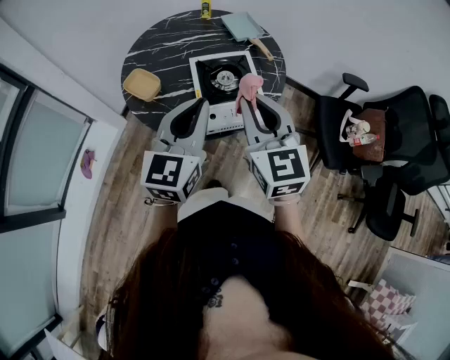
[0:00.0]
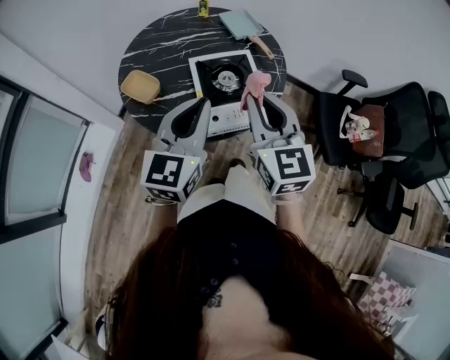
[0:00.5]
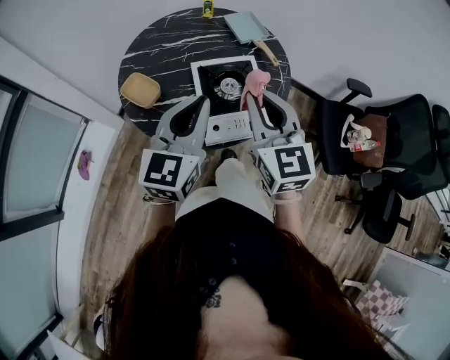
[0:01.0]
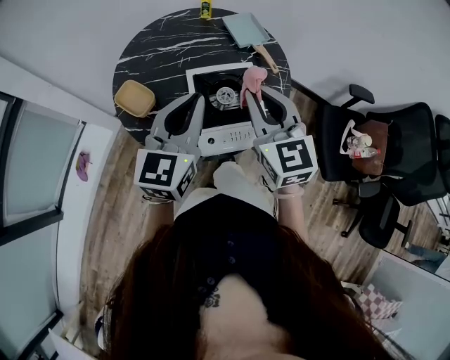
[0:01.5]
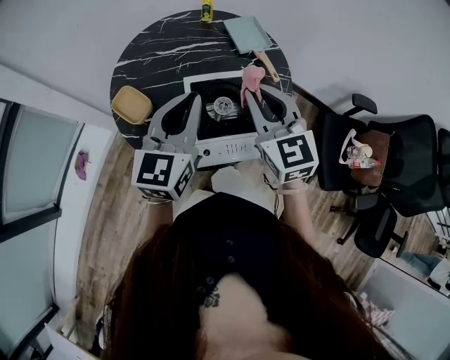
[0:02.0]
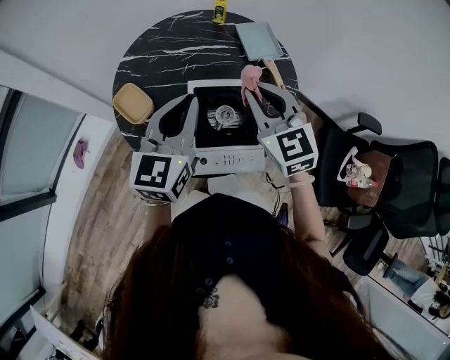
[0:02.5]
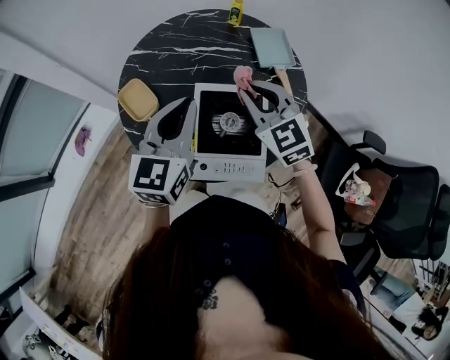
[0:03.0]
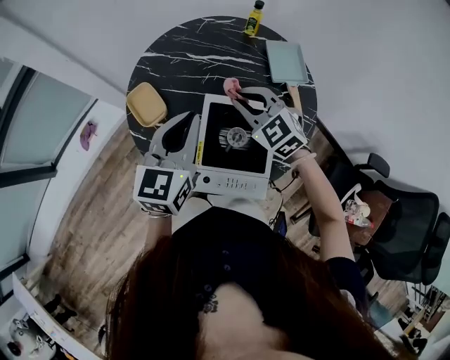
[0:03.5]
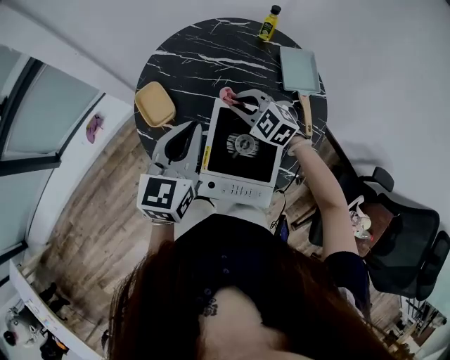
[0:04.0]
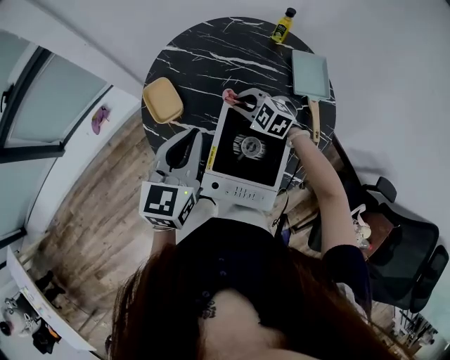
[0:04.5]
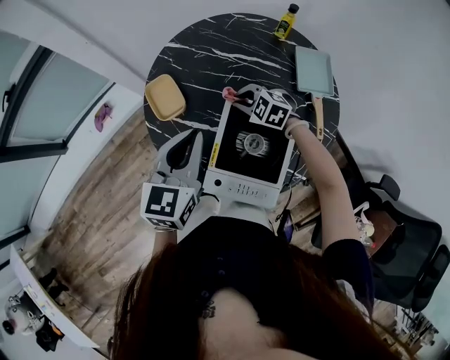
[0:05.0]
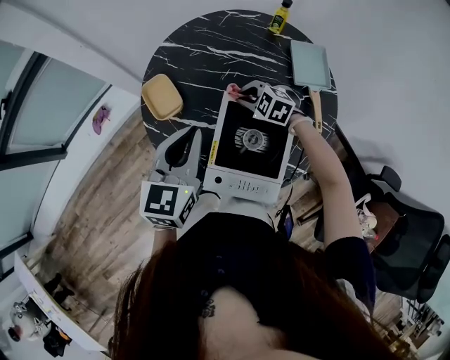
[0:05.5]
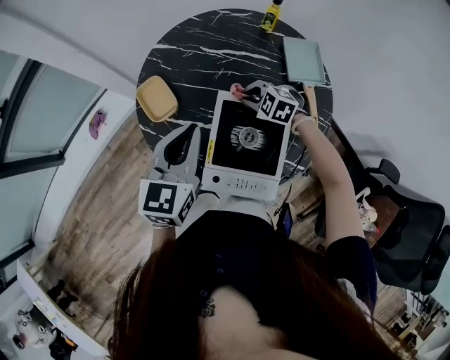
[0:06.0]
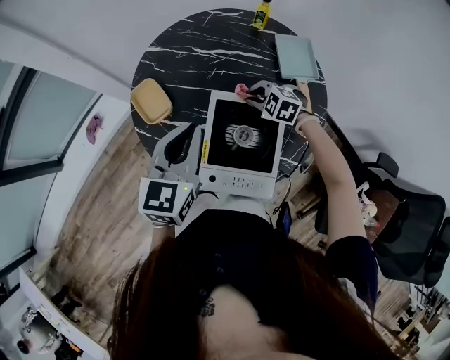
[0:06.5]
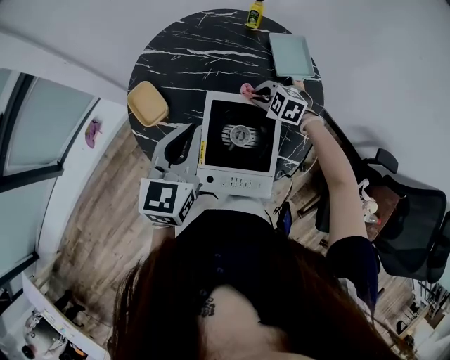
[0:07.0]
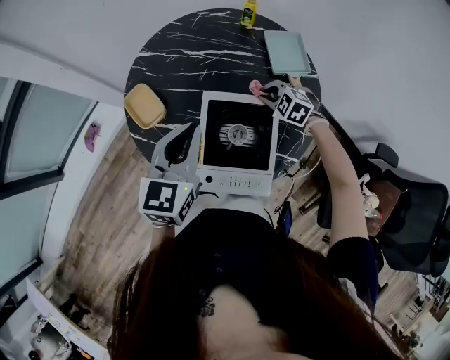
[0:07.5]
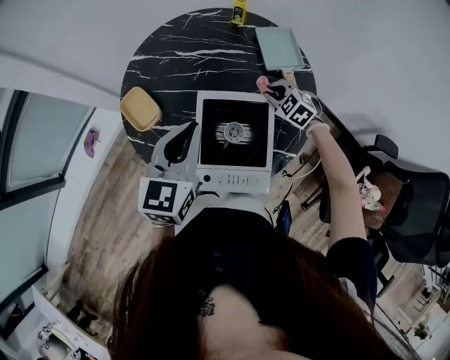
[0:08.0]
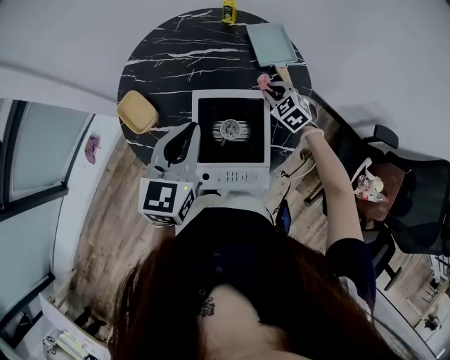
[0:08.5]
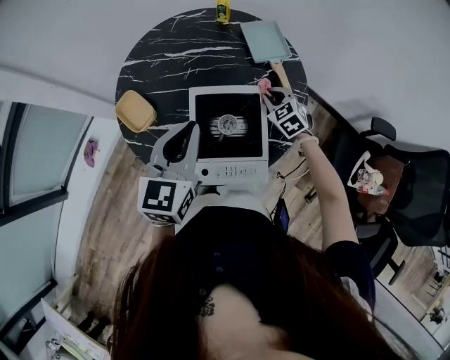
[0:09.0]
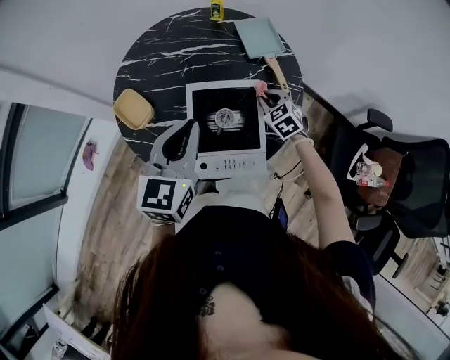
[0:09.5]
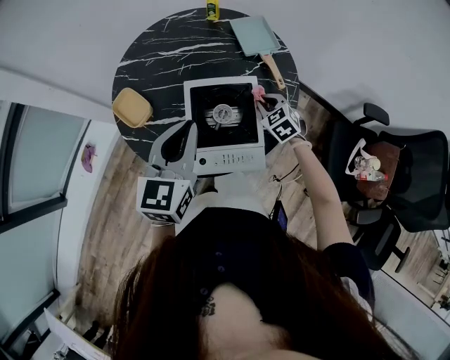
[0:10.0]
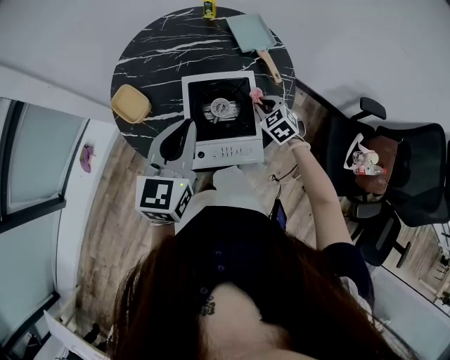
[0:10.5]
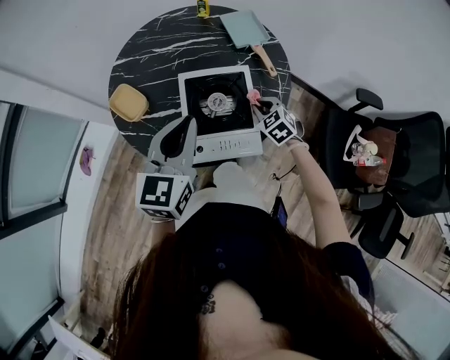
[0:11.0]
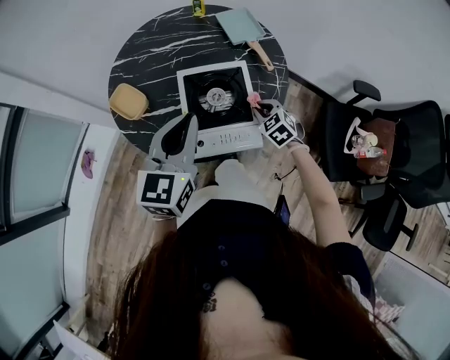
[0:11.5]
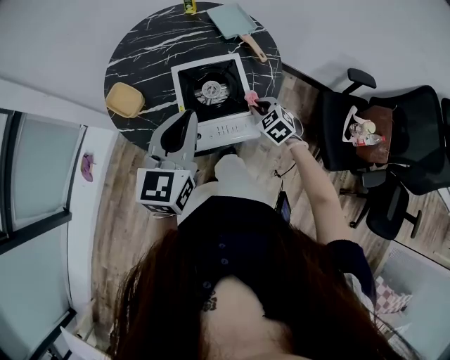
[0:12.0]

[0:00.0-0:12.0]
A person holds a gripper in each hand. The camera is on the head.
0:00.0 to 0:02.0: Both grippers travel together forward, approximately 20 cm.
0:02.0 to 0:04.0: The left gripper shifts by approximately 10 cm, and changes its angle by approximately 20 degrees; the right gripper moves downward, some 20 cm, and changes its angle by some 60 degrees.
0:04.0 to 0:06.0: The right gripper shifts roughly 10 cm downward.
0:06.0 to 0:08.0: The left gripper moves to the right, roughly 5 cm, while the right gripper is displaced to the right by roughly 15 cm, and rotates about 20 degrees.
0:08.0 to 0:10.0: The left gripper heads backward, covering roughly 5 cm; the right gripper travels backward by some 10 cm, and turns by about 30 degrees.
0:10.0 to 0:12.0: The right gripper is displaced backward by approximately 15 cm; the left gripper shifts about 5 cm backward.

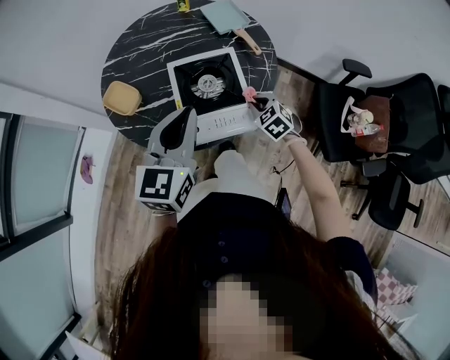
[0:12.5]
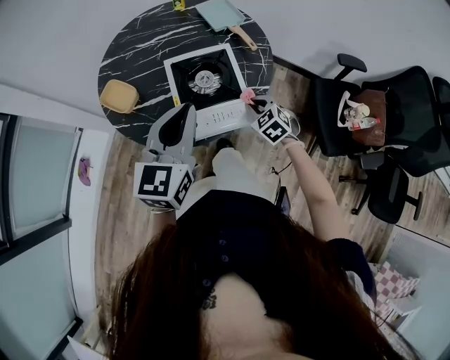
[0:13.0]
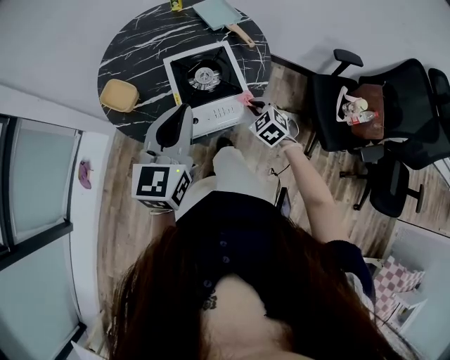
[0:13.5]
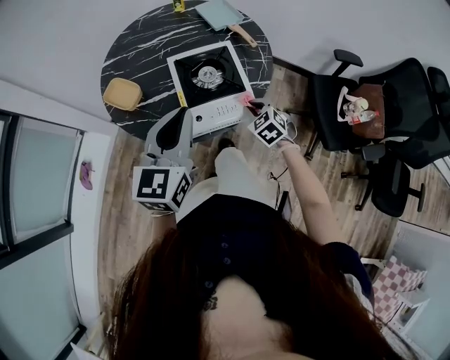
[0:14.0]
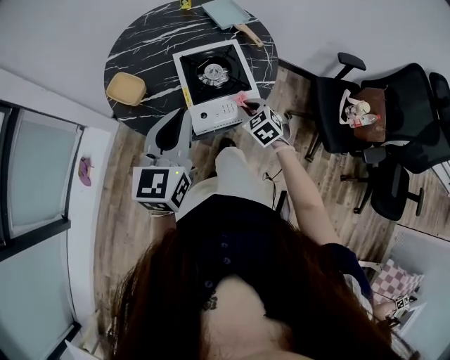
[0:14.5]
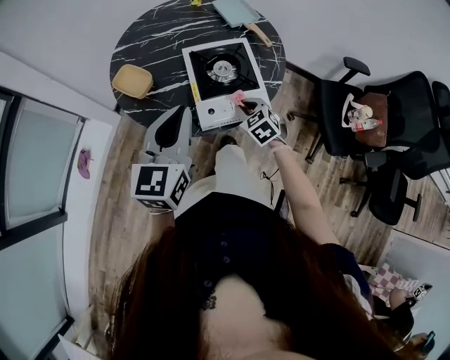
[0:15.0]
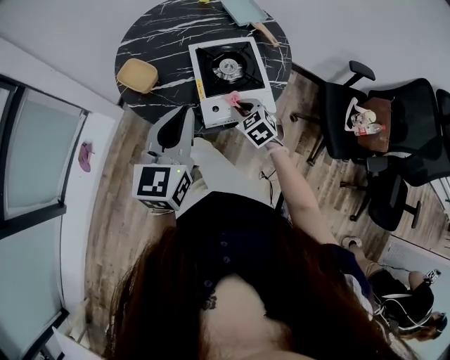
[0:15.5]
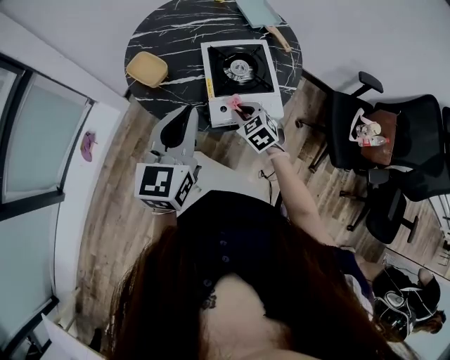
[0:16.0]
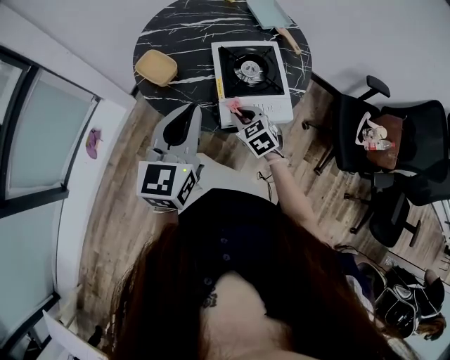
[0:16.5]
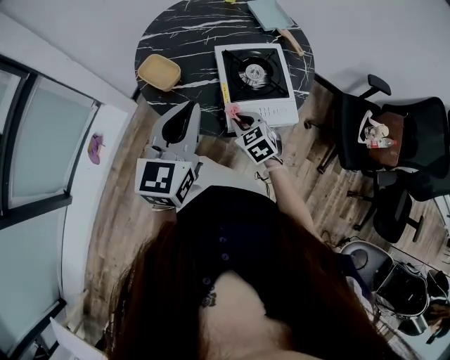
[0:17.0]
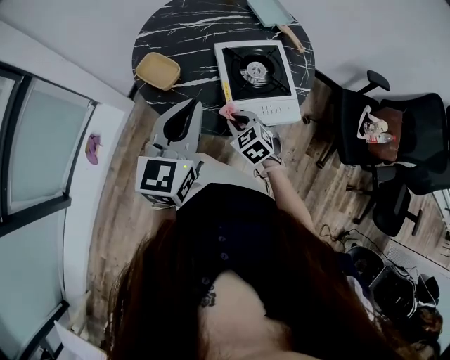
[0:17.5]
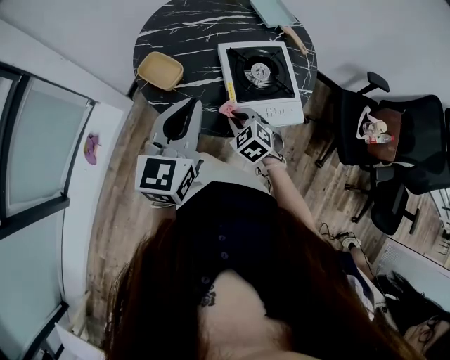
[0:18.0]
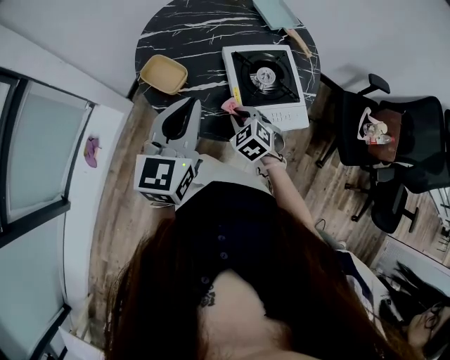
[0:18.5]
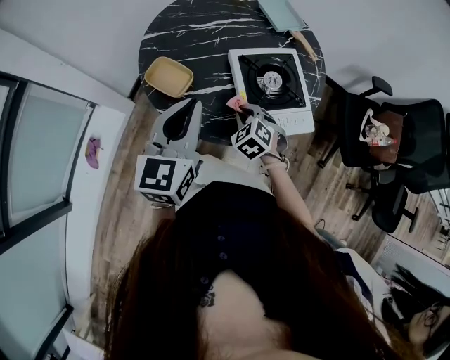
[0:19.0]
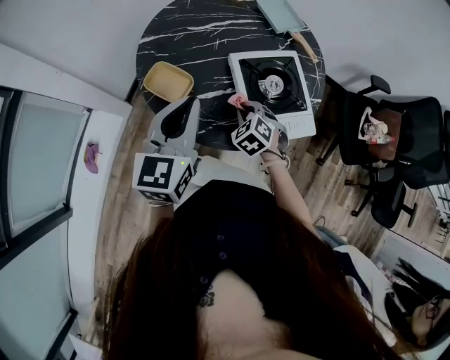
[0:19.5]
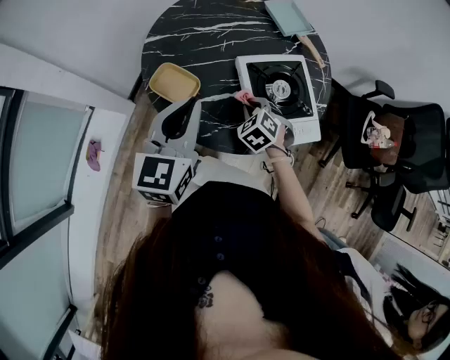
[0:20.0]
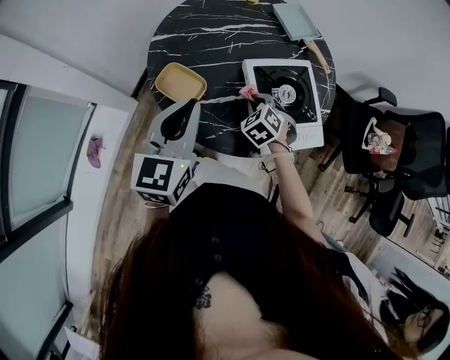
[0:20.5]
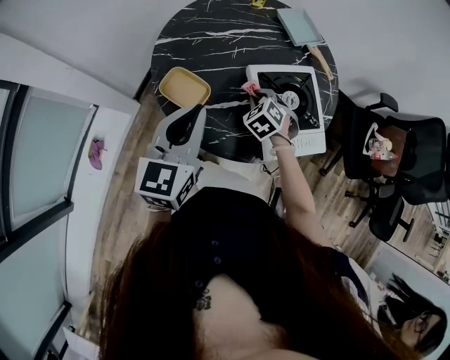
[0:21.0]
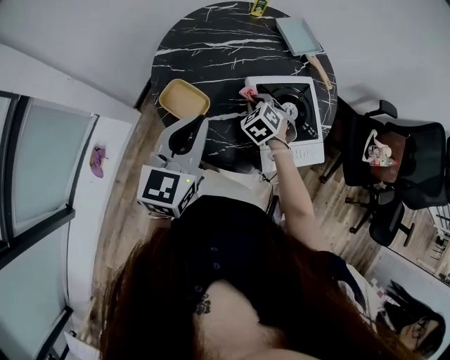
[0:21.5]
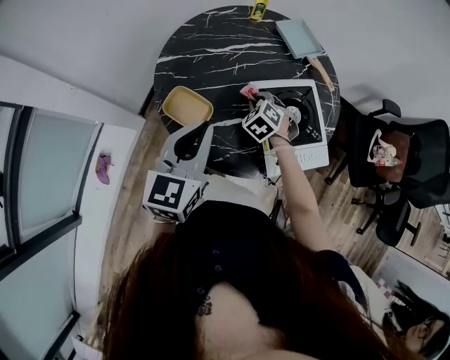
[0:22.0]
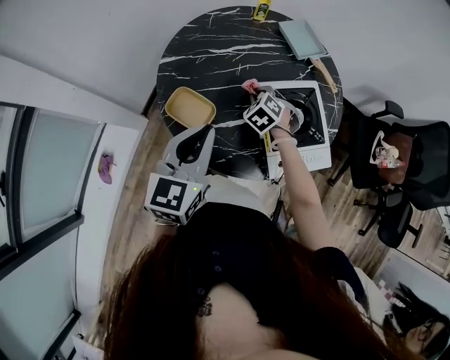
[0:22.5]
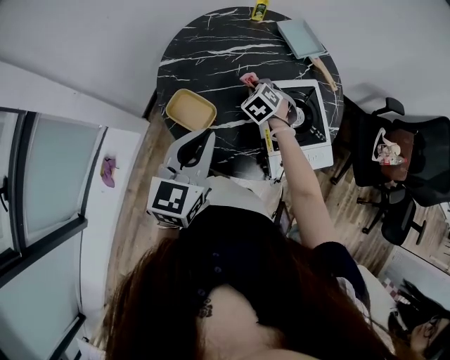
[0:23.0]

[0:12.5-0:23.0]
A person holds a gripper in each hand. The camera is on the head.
0:12.5 to 0:14.5: The two grippers go roughly 10 cm backward and to the left.
0:14.5 to 0:16.5: The right gripper goes approximately 15 cm to the left. The left gripper heads to the left, covering about 5 cm.
0:16.5 to 0:19.0: The right gripper goes roughly 10 cm to the left and forward, and rotates about 20 degrees; the left gripper travels forward and to the left by some 15 cm.
0:19.0 to 0:21.0: The left gripper is displaced to the left by approximately 5 cm. The right gripper goes approximately 10 cm forward.
0:21.0 to 0:23.0: The right gripper shifts some 10 cm forward.

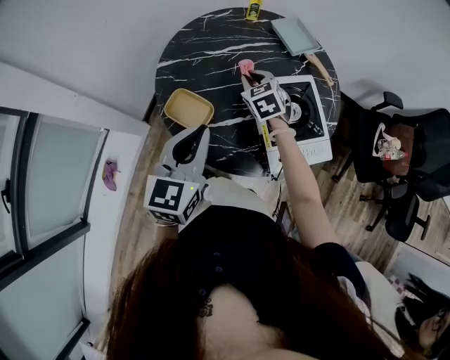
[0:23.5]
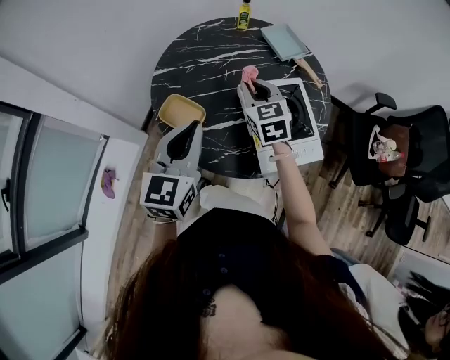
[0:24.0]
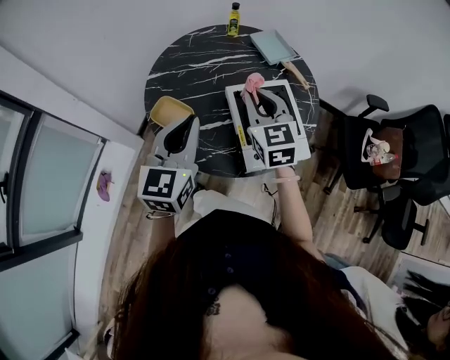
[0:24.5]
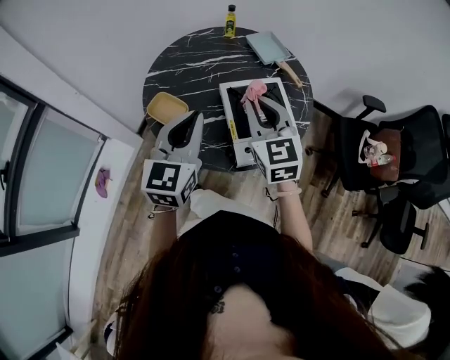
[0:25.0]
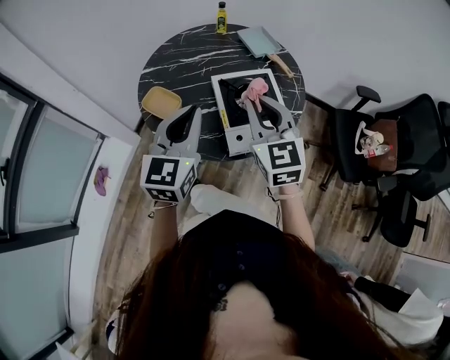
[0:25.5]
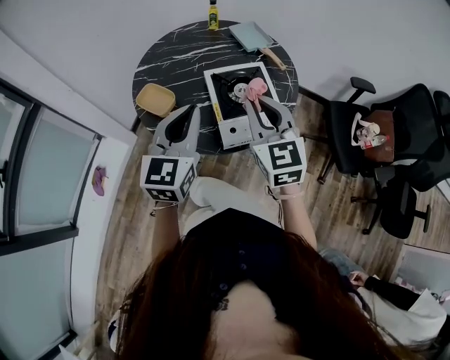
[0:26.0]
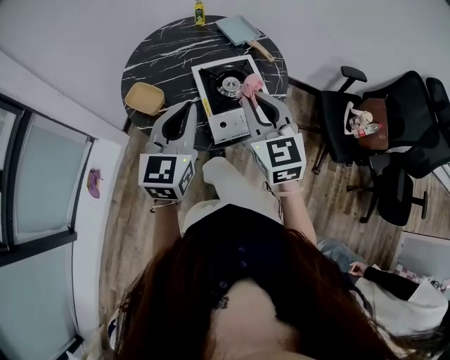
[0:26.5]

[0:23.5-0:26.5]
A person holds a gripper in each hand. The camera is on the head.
0:23.5 to 0:25.0: The left gripper goes approximately 10 cm to the right, backward and upward; the right gripper moves backward, upward and to the right, some 30 cm, and turns by roughly 30 degrees.
0:25.0 to 0:26.5: The left gripper heads to the right and backward, covering roughly 10 cm. Meanwhile the right gripper heads backward and to the right, covering approximately 10 cm.

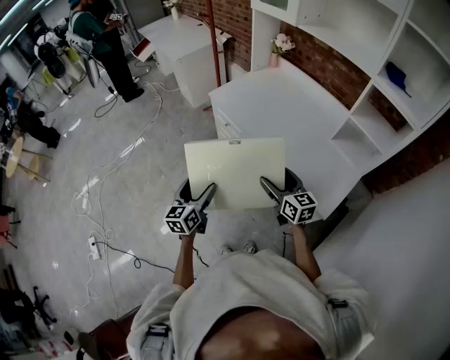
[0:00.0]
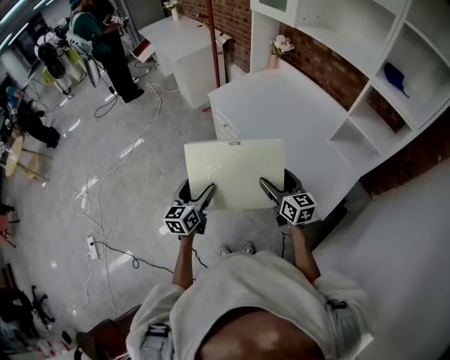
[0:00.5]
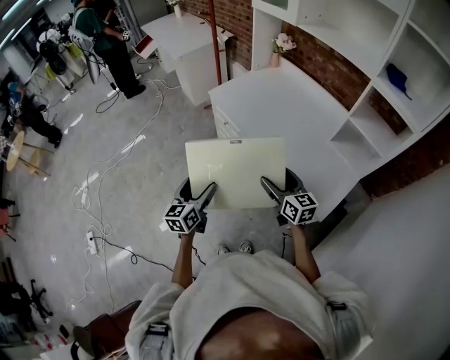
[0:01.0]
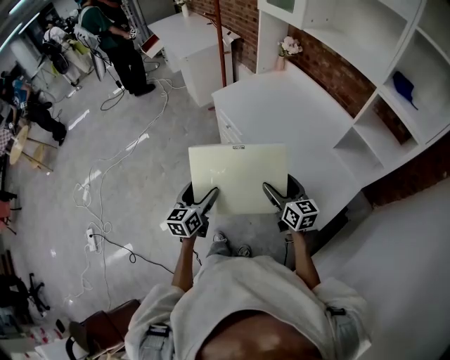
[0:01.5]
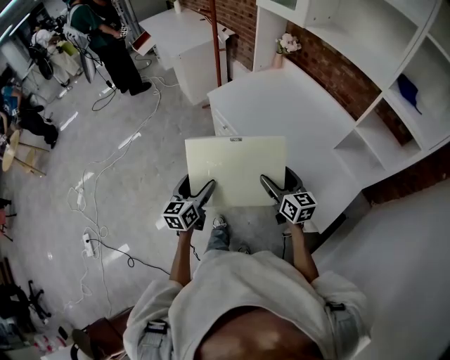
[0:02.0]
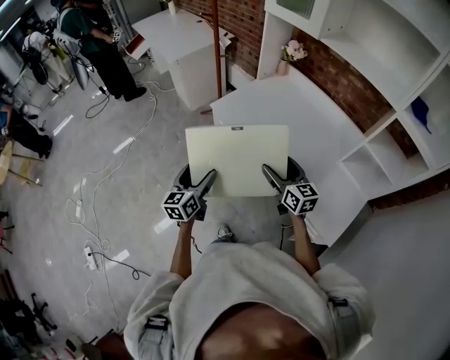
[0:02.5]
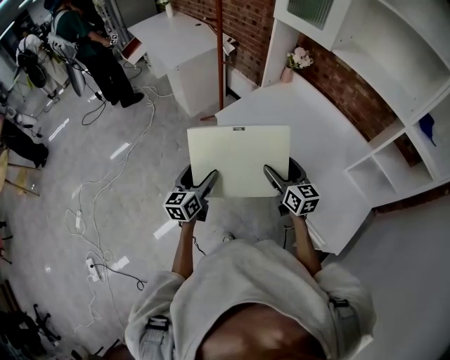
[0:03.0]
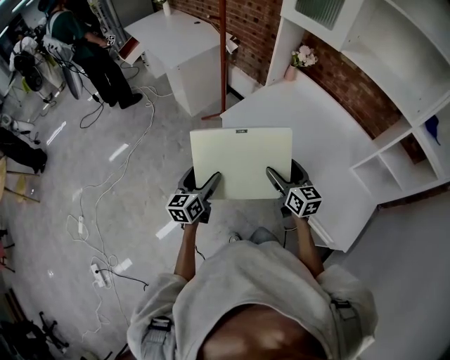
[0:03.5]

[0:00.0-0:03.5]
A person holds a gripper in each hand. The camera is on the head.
0:00.0 to 0:02.0: Both grippers move forward, approximately 5 cm.
0:02.0 to 0:03.5: The two grippers go approximately 25 cm forward and to the left.
